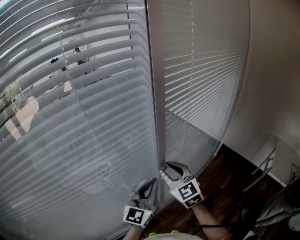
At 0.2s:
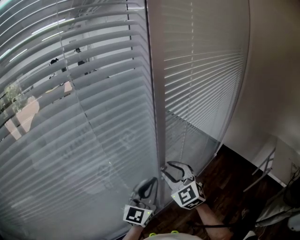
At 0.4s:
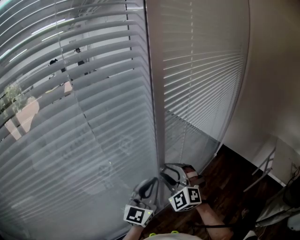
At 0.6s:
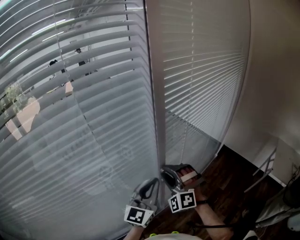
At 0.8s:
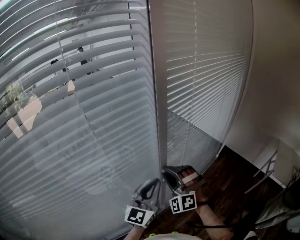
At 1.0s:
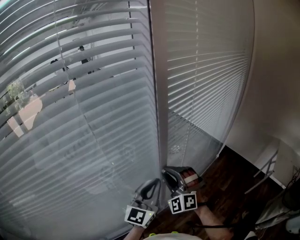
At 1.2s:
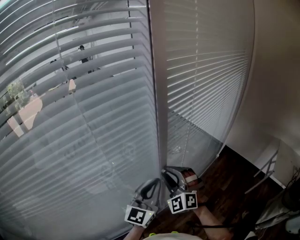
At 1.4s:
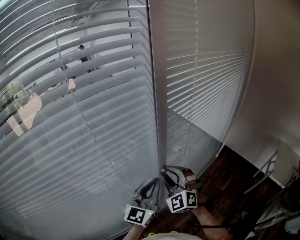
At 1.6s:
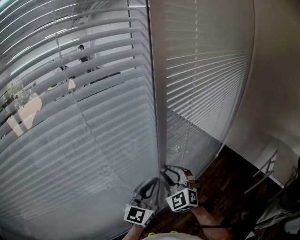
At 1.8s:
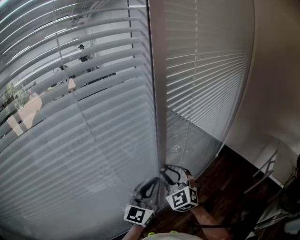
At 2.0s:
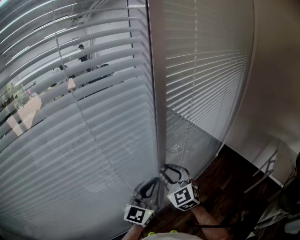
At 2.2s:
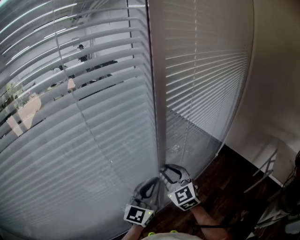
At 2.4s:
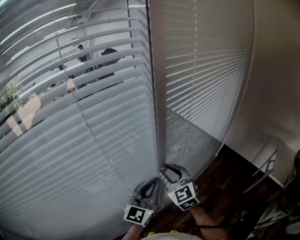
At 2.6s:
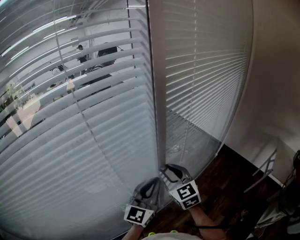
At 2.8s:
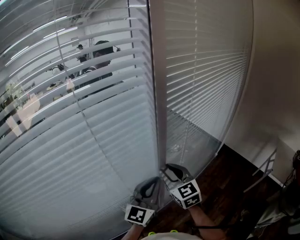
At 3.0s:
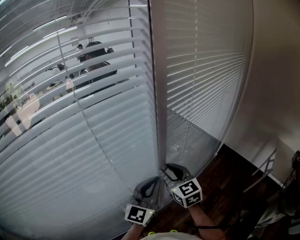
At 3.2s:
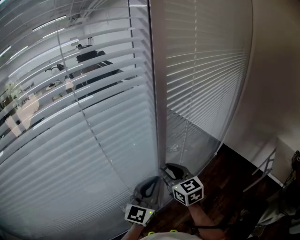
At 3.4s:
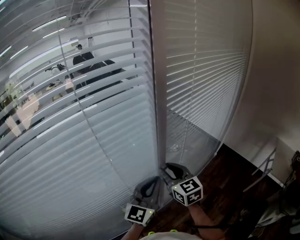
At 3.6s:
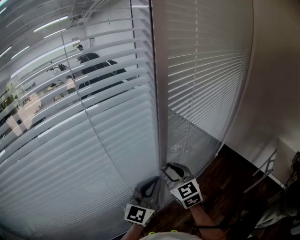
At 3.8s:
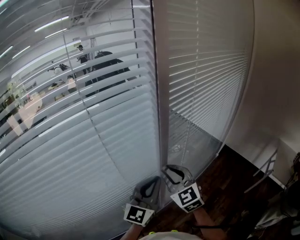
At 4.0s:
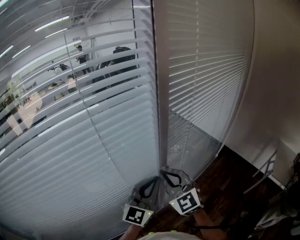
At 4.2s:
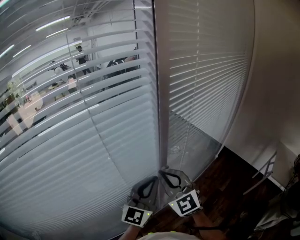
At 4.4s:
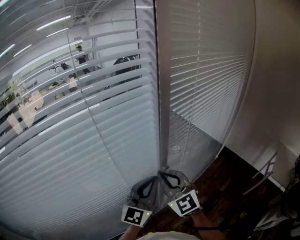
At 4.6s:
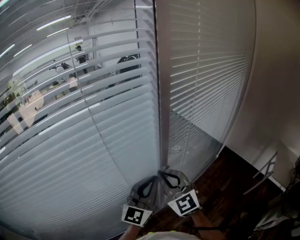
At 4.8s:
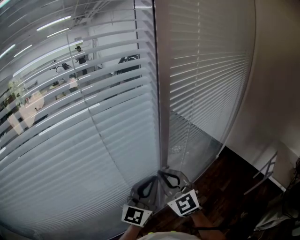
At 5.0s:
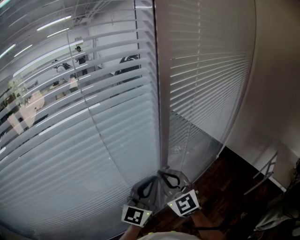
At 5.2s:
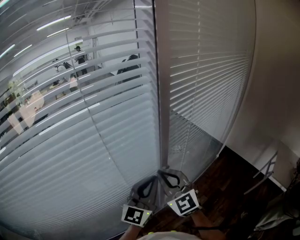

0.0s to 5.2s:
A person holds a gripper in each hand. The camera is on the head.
1.8s to 3.4s: The right gripper swivels roughly 40 degrees.
3.4s to 5.2s: The right gripper heads backward and upward, covering roughly 5 cm, swivels approximately 30 degrees, and closes up.

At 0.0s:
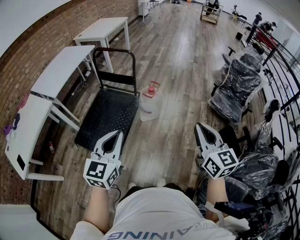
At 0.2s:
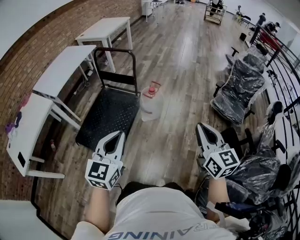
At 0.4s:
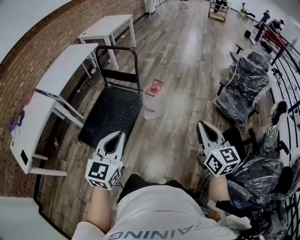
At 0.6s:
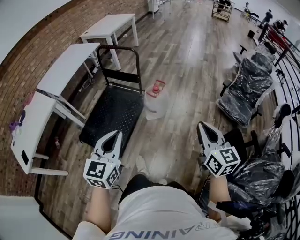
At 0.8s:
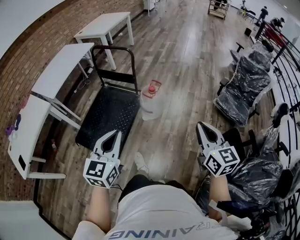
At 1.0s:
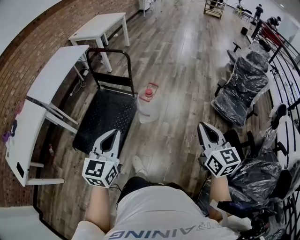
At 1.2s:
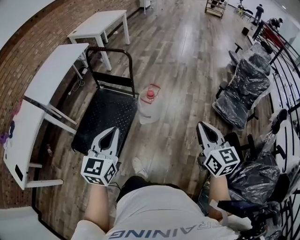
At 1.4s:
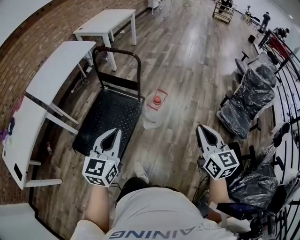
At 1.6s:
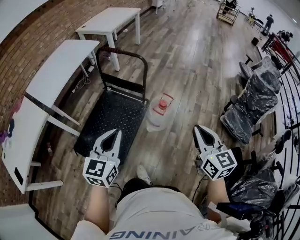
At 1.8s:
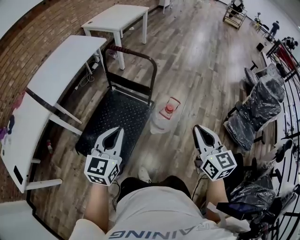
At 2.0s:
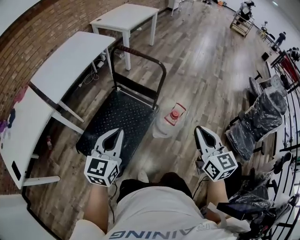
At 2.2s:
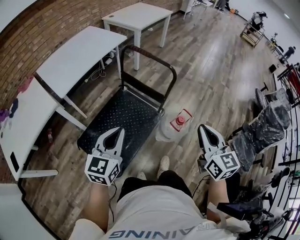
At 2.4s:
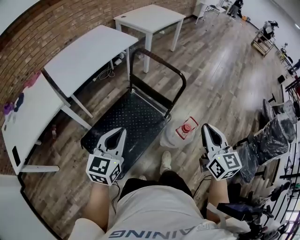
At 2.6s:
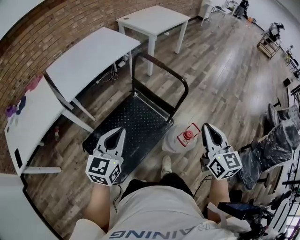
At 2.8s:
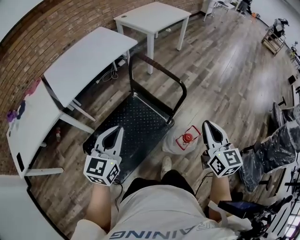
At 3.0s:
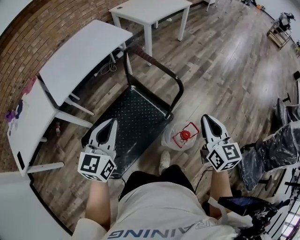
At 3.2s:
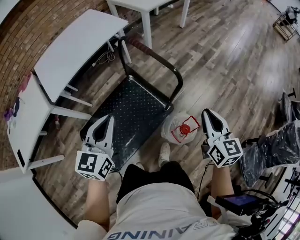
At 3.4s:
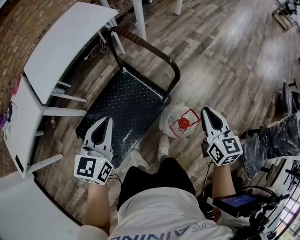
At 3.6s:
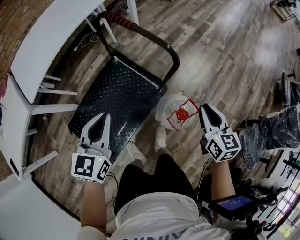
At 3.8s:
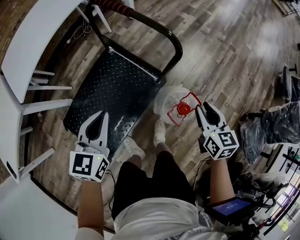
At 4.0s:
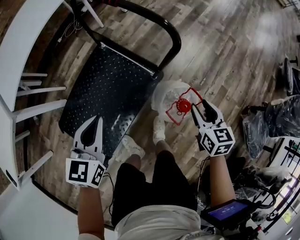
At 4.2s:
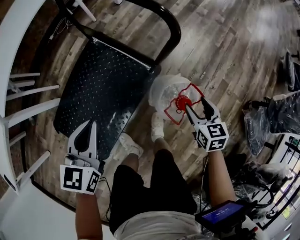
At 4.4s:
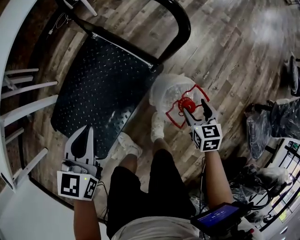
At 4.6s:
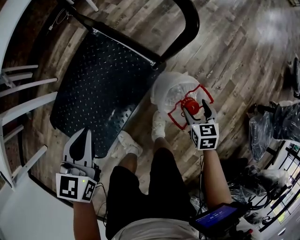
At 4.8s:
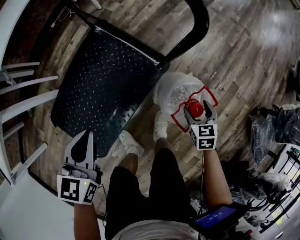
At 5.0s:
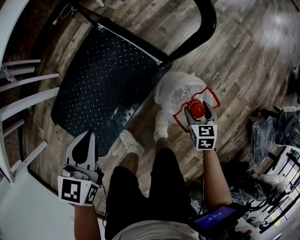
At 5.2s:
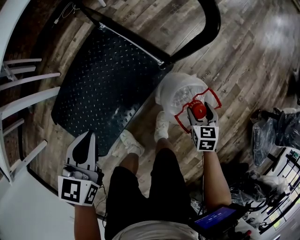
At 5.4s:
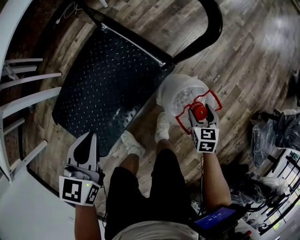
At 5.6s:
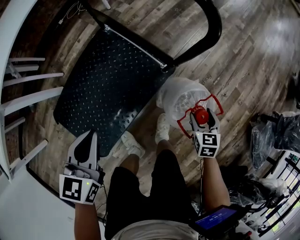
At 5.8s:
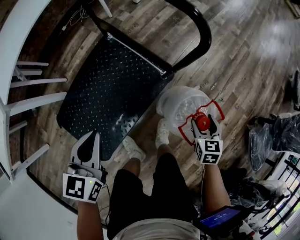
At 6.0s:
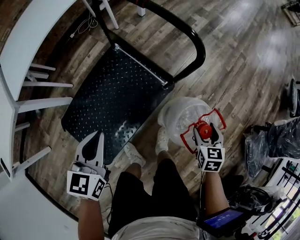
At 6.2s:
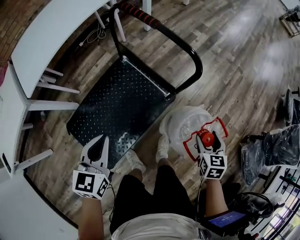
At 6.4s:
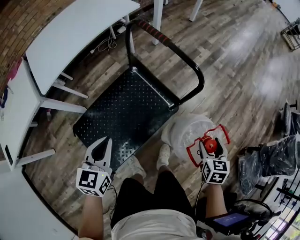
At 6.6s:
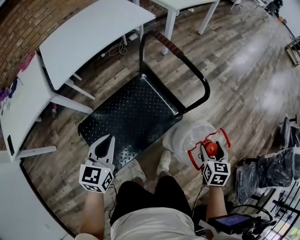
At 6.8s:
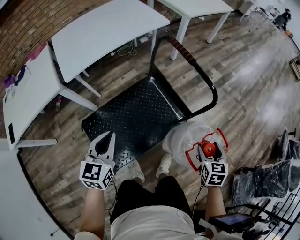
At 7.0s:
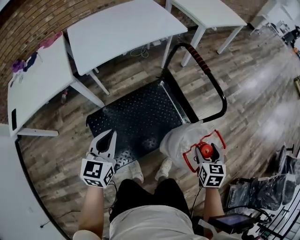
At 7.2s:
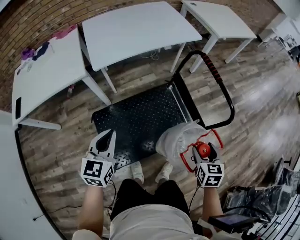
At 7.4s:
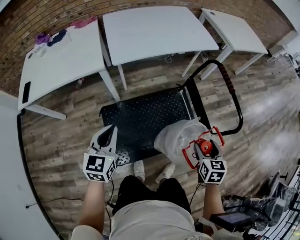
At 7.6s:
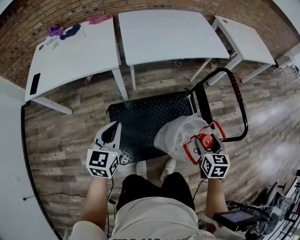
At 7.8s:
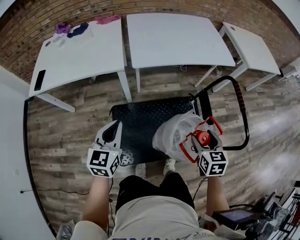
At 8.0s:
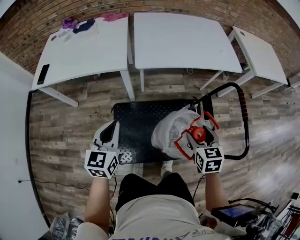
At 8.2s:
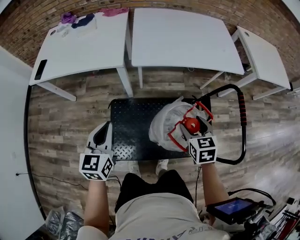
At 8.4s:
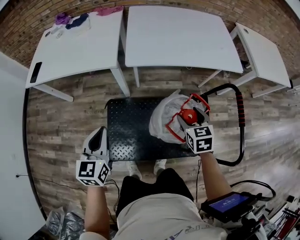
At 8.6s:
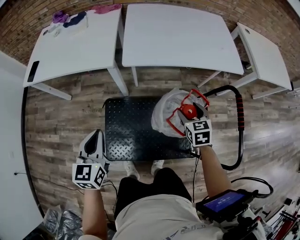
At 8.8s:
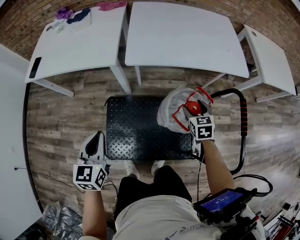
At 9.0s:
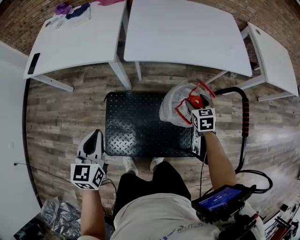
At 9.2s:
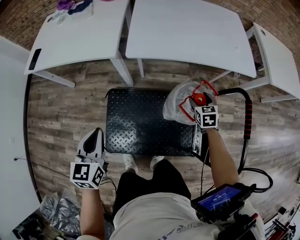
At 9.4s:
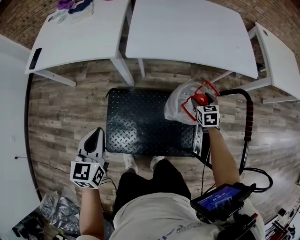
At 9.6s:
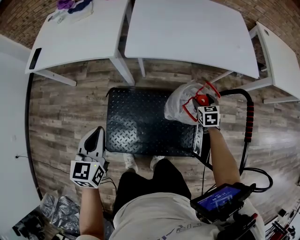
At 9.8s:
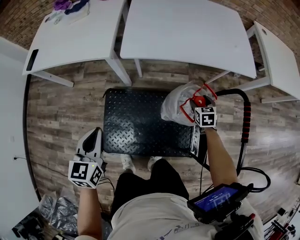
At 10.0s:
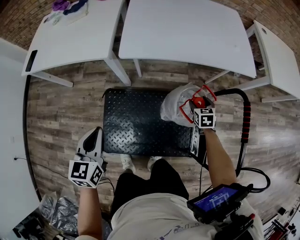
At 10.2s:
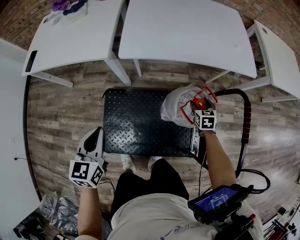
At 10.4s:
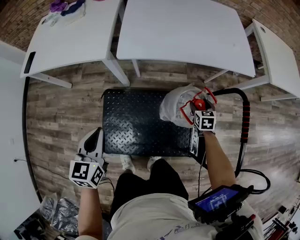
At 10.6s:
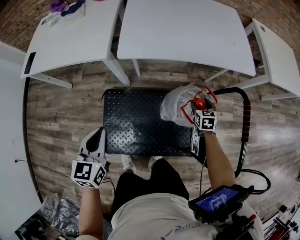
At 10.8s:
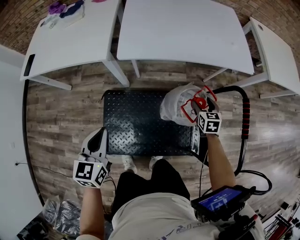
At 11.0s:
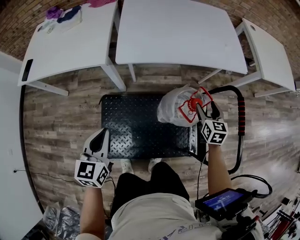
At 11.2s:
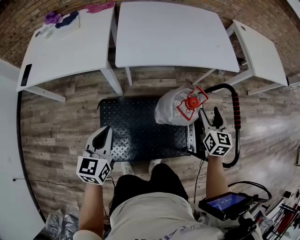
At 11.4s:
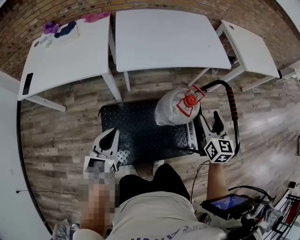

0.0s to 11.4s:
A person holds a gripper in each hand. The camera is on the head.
0.0s to 1.4s: Both grippers travel together forward, approximately 20 cm.
1.4s to 2.8s: The right gripper heads forward, covering roughly 35 cm. Meanwhile the left gripper shifts approximately 30 cm forward and to the left.
2.8s to 4.2s: The left gripper moves downward, some 25 cm, and turns by roughly 20 degrees, while the right gripper travels downward by roughly 40 cm, tilts its fingers some 40 degrees downward, and opens up.
4.2s to 5.6s: The right gripper goes approximately 10 cm downward. The left gripper ends up approximately 5 cm from where it was.
5.6s to 7.2s: The right gripper heads upward and to the left, covering some 40 cm, and changes its angle by approximately 20 degrees; the left gripper is displaced to the left, upward and backward by about 30 cm, and swivels about 30 degrees.
7.2s to 8.6s: The right gripper ends up some 35 cm from where it was, and turns by some 40 degrees. The left gripper changes place by approximately 10 cm, and rotates some 30 degrees.
8.6s to 10.0s: The right gripper goes approximately 20 cm downward, to the right and forward; the left gripper moves about 5 cm.
10.0s to 11.4s: The right gripper shifts about 30 cm upward and backward, and angles its fingers upward, by about 30 degrees.

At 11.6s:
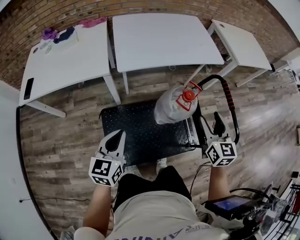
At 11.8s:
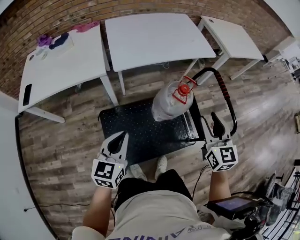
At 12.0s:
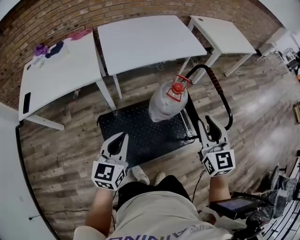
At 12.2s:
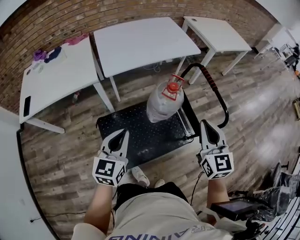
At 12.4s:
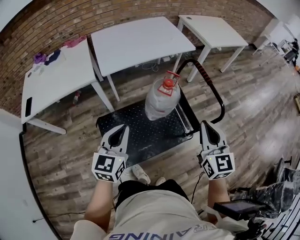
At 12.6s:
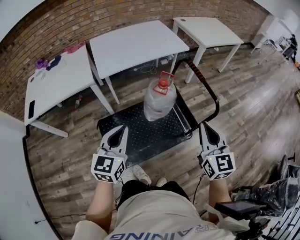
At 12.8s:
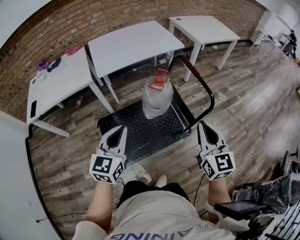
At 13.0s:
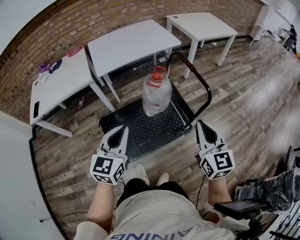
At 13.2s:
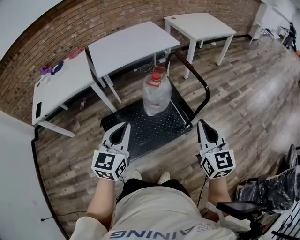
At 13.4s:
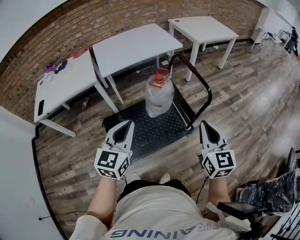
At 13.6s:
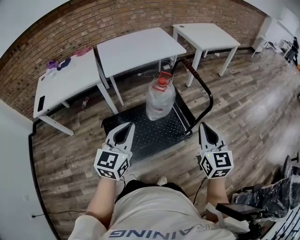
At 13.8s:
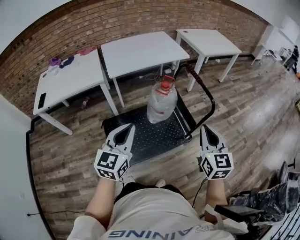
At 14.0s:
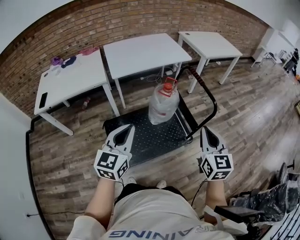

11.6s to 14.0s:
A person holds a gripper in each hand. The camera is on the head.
11.6s to 12.8s: The left gripper travels to the right, backward and upward by about 20 cm, while the right gripper shifts approximately 25 cm backward and to the right, and closes up.
12.8s to 14.0s: The grippers both shift backward by approximately 5 cm.

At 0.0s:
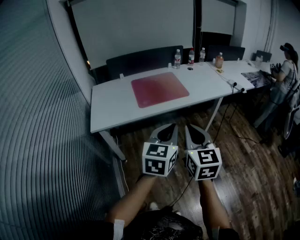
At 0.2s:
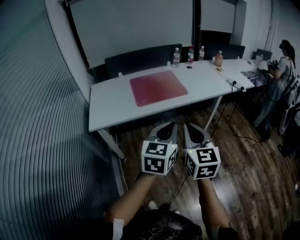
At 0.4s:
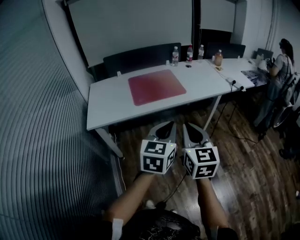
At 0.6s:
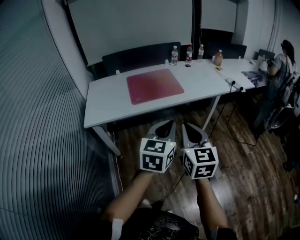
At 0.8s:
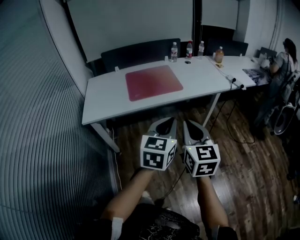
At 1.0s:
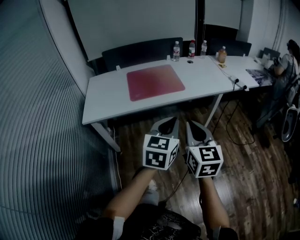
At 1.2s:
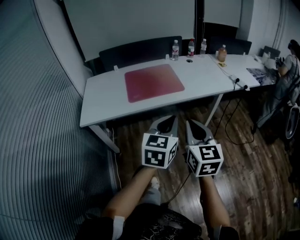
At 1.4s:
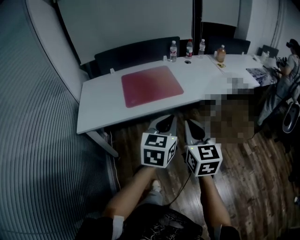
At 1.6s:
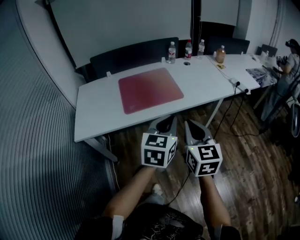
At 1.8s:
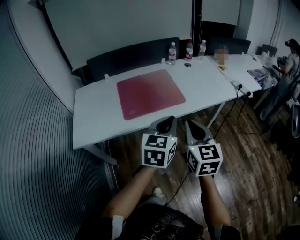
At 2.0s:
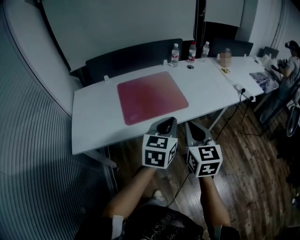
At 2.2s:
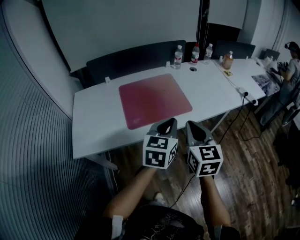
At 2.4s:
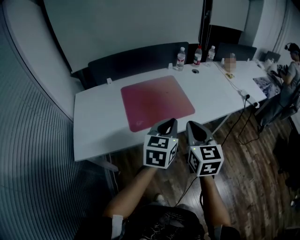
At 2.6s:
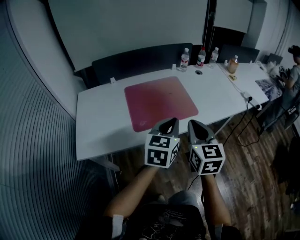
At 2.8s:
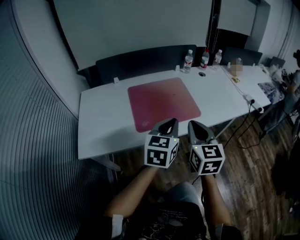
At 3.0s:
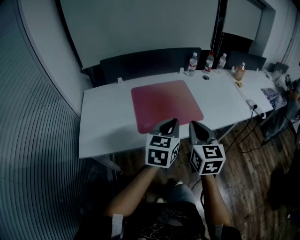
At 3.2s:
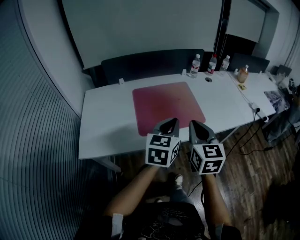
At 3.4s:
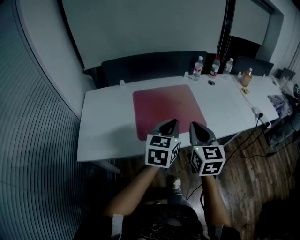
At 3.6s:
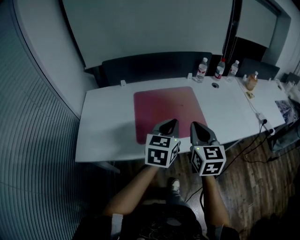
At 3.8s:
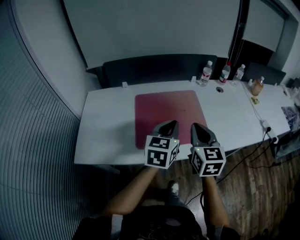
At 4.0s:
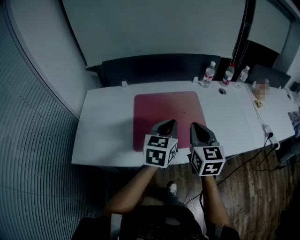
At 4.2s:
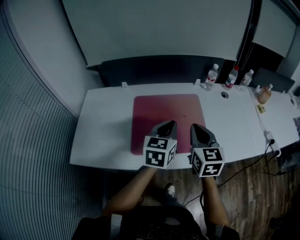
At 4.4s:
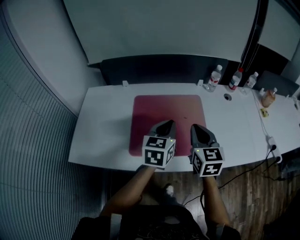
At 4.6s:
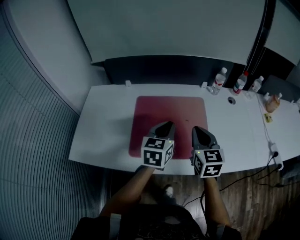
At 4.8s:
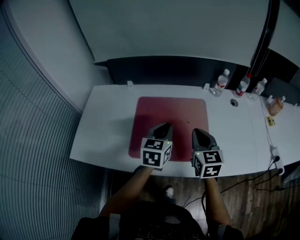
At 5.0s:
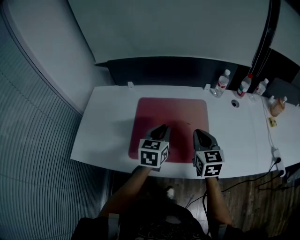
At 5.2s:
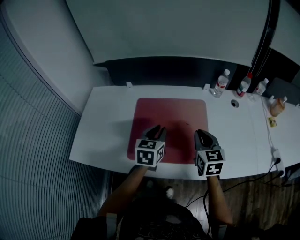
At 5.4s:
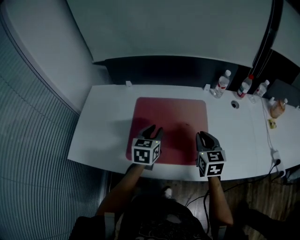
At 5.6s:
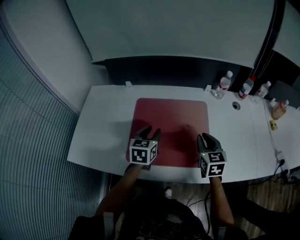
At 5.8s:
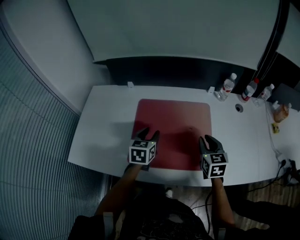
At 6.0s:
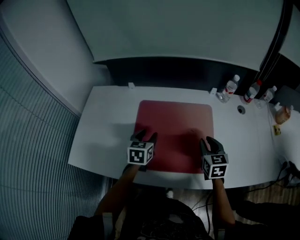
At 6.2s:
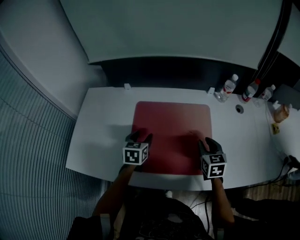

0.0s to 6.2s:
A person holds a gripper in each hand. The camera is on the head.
0.0s to 1.6s: The right gripper moves forward and to the right, roughly 20 cm. Meanwhile the left gripper is displaced forward by approximately 20 cm.
1.6s to 3.2s: The grippers both shift forward and to the left by about 20 cm.
3.2s to 4.6s: Both grippers travel together forward, about 20 cm.
4.6s to 6.2s: The left gripper shifts approximately 20 cm downward, to the left and forward, and opens, while the right gripper heads downward and forward, covering approximately 15 cm, and opens its fingers.
